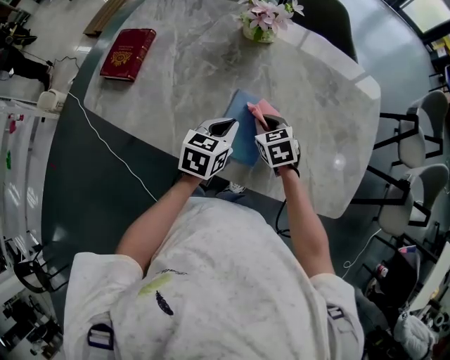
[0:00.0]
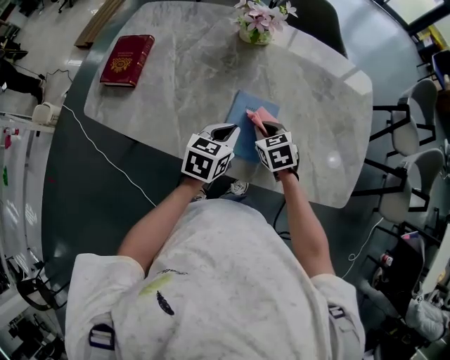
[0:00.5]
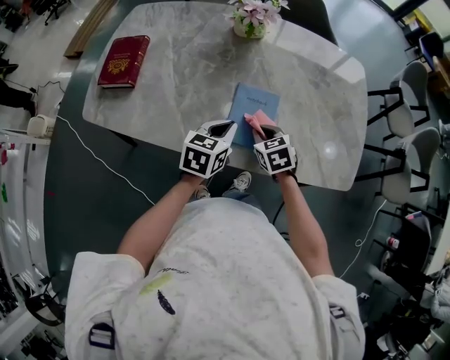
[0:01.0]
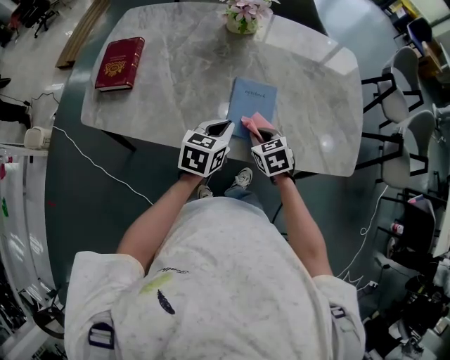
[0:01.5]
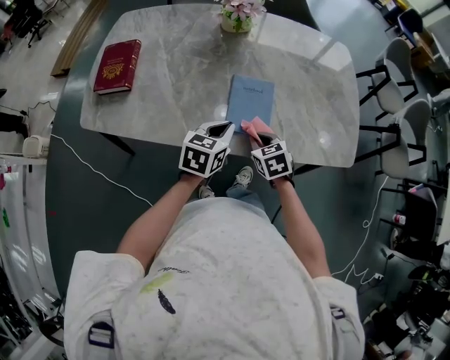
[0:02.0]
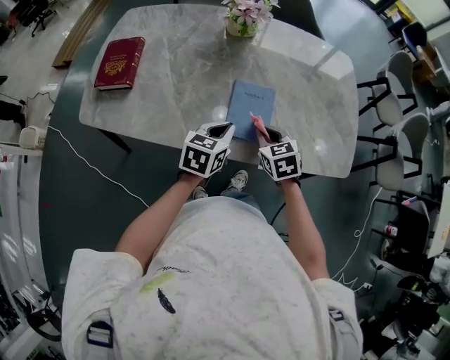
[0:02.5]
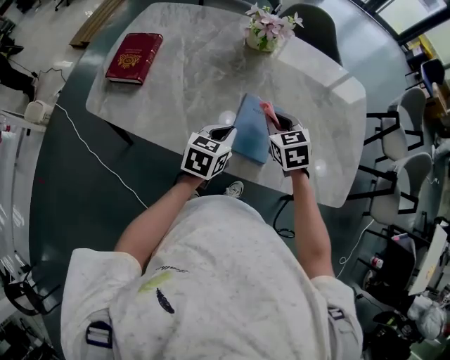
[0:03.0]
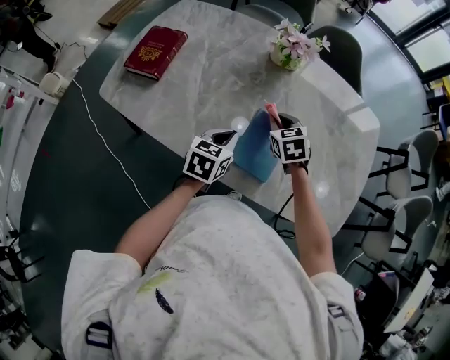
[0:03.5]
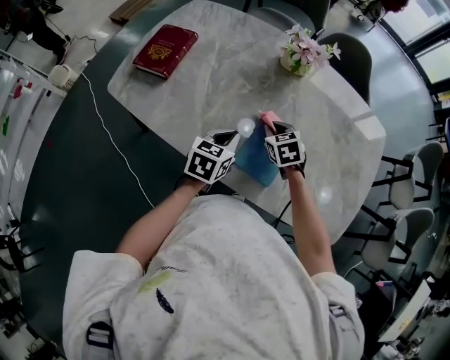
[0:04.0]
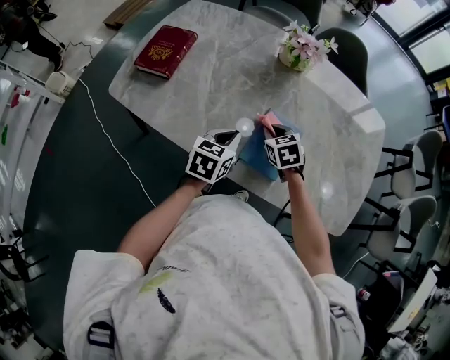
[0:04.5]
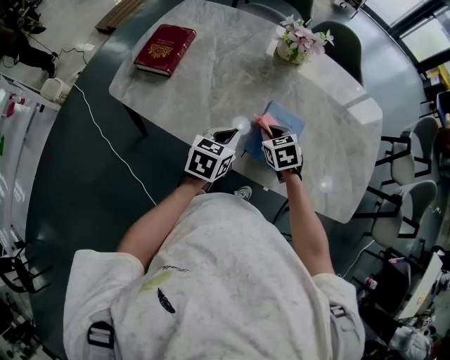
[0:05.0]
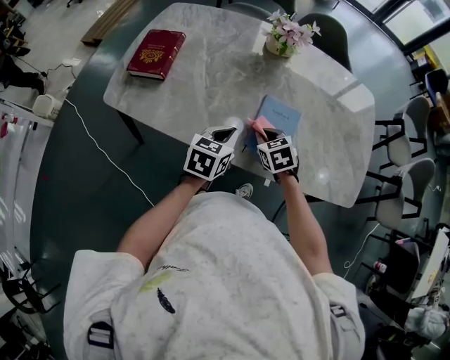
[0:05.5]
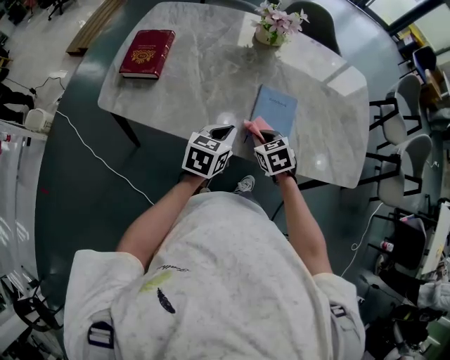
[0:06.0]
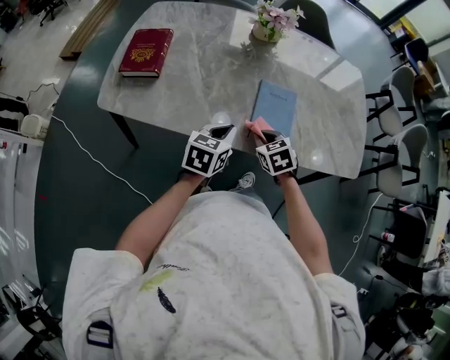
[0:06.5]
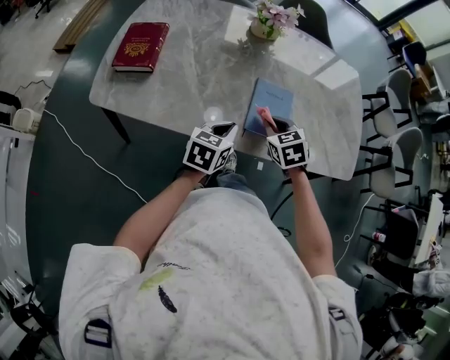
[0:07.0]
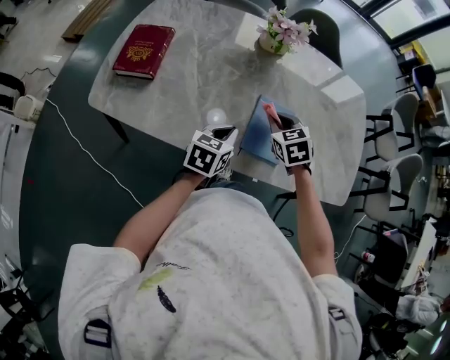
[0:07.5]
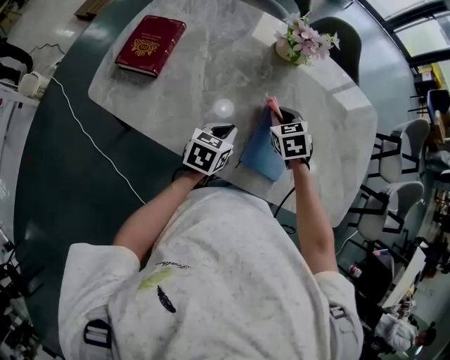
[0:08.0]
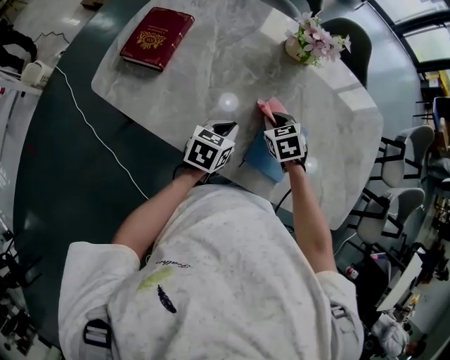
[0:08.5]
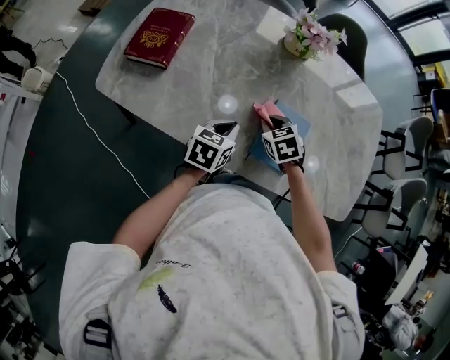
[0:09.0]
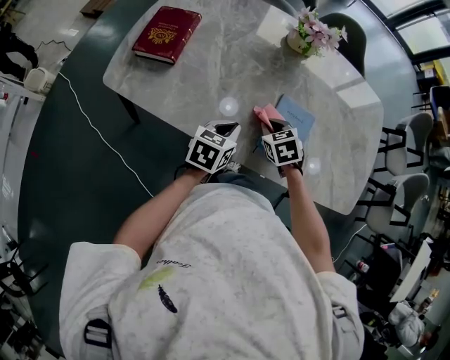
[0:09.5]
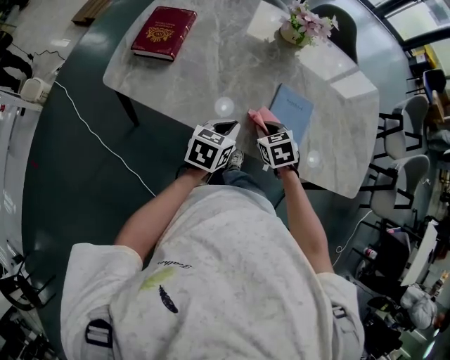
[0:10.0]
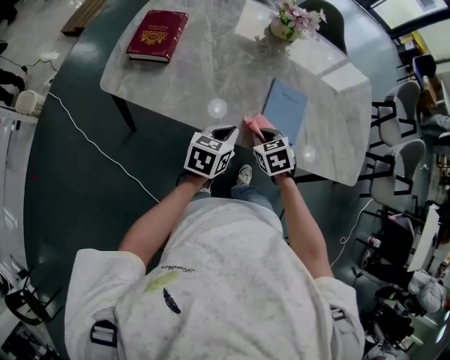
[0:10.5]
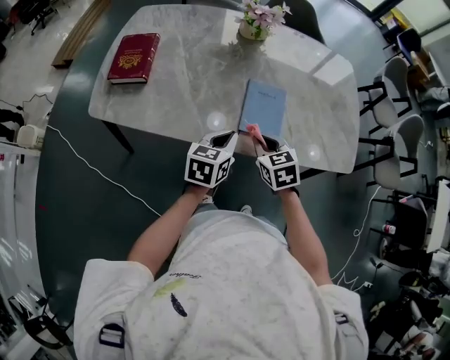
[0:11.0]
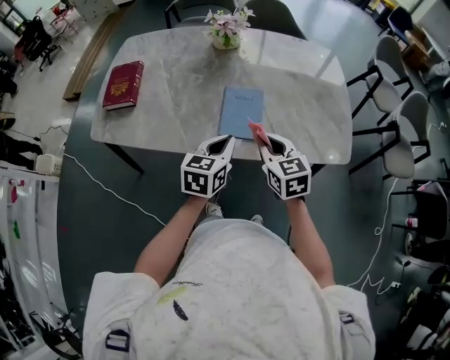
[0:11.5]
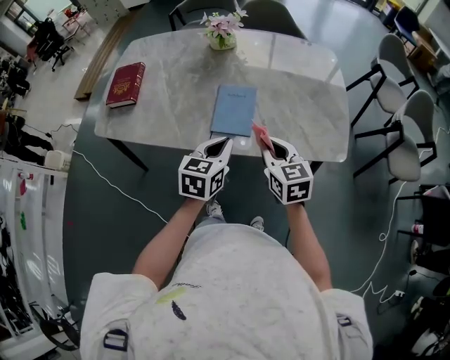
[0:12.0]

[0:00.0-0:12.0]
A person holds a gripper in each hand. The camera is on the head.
0:00.0 to 0:02.0: The right gripper goes some 15 cm backward. The left gripper is displaced backward by some 10 cm.
0:02.0 to 0:04.0: The right gripper travels forward by approximately 20 cm, and rotates about 20 degrees, while the left gripper is displaced forward by approximately 10 cm, and changes its angle by about 20 degrees.
0:04.0 to 0:06.0: The left gripper travels backward by some 10 cm. Meanwhile the right gripper goes approximately 15 cm backward.
0:06.0 to 0:08.0: The left gripper moves forward and downward, approximately 10 cm, while the right gripper heads forward, covering about 20 cm.
0:08.0 to 0:10.0: The right gripper heads backward, covering some 15 cm, while the left gripper shifts approximately 10 cm backward.
0:10.0 to 0:12.0: The left gripper travels to the right and upward by about 20 cm, while the right gripper goes some 25 cm to the right, upward and backward, and points its fingers approximately 30 degrees further upward.

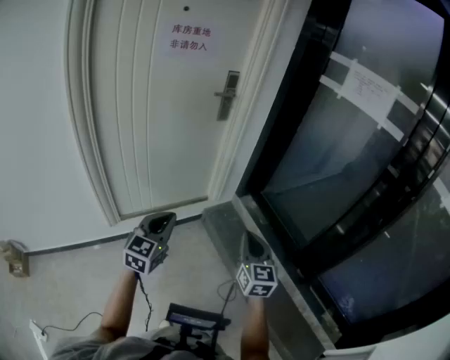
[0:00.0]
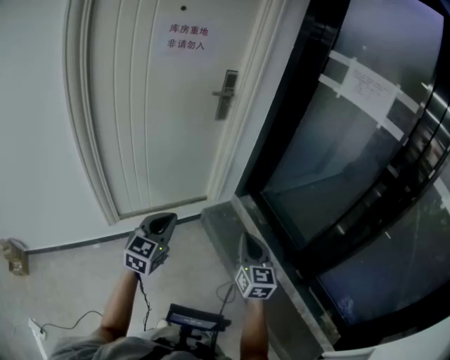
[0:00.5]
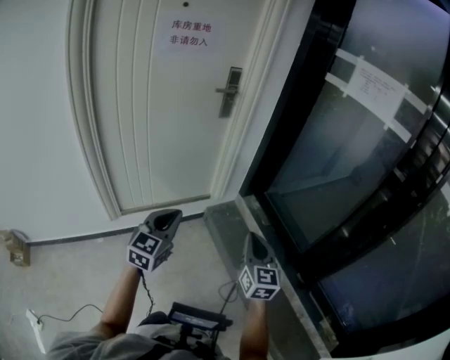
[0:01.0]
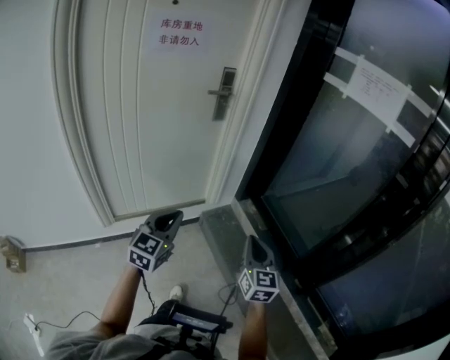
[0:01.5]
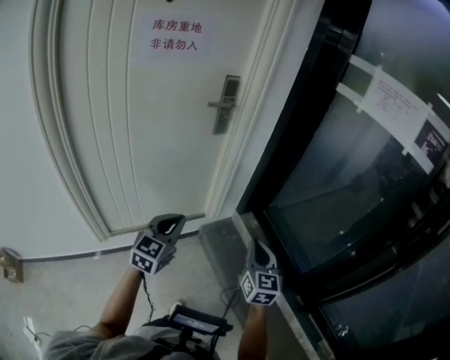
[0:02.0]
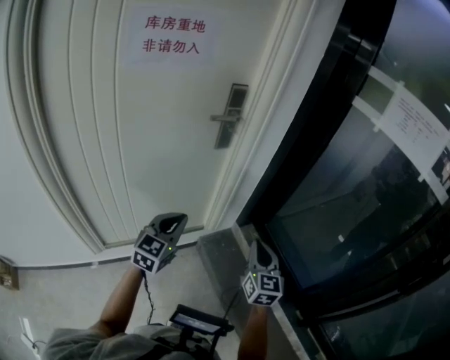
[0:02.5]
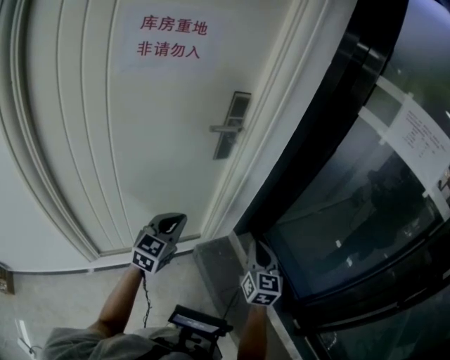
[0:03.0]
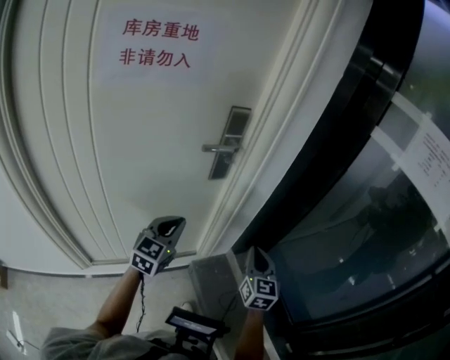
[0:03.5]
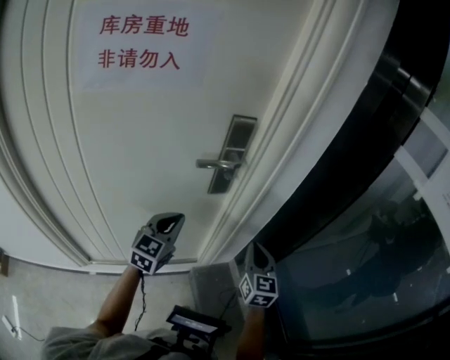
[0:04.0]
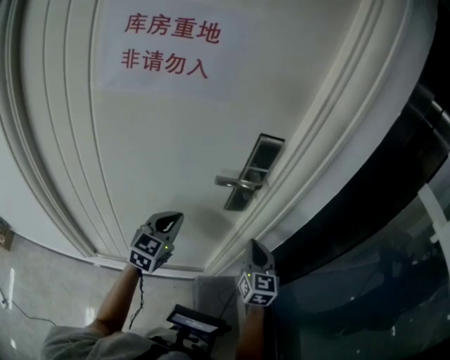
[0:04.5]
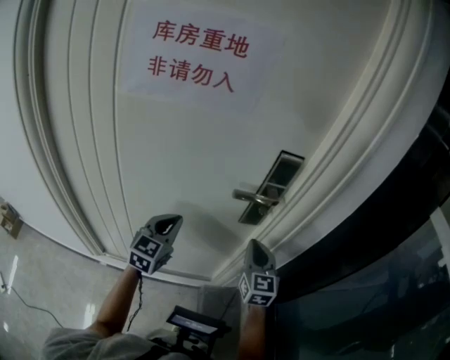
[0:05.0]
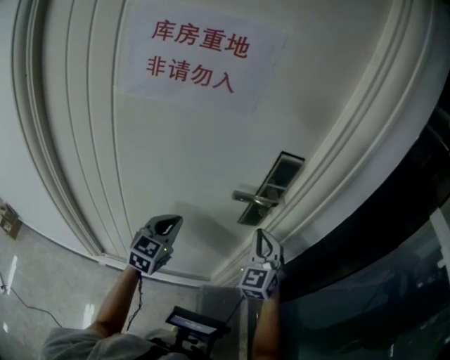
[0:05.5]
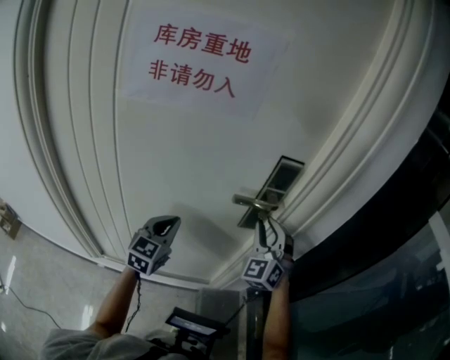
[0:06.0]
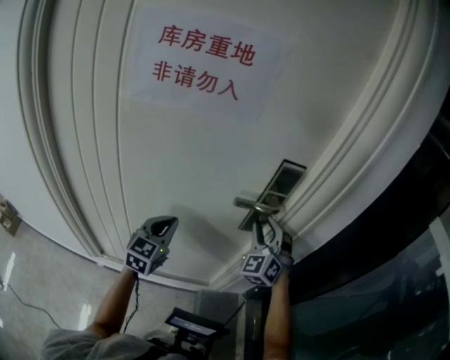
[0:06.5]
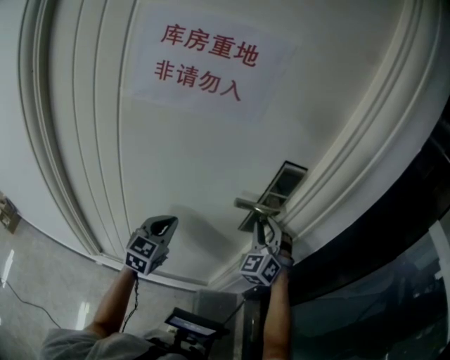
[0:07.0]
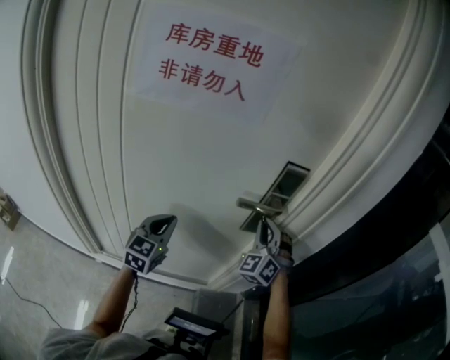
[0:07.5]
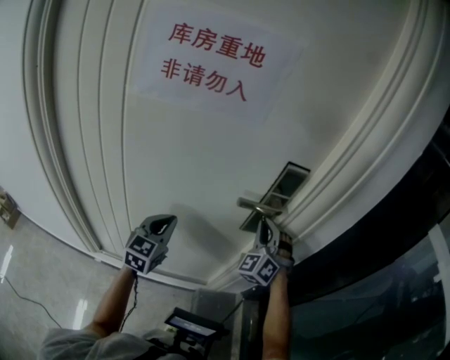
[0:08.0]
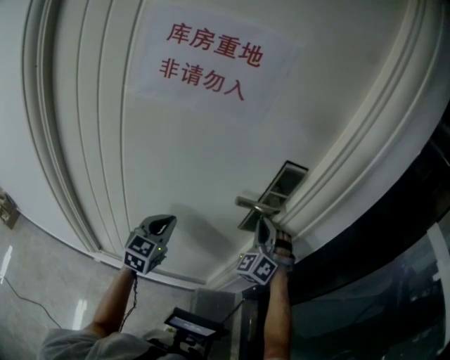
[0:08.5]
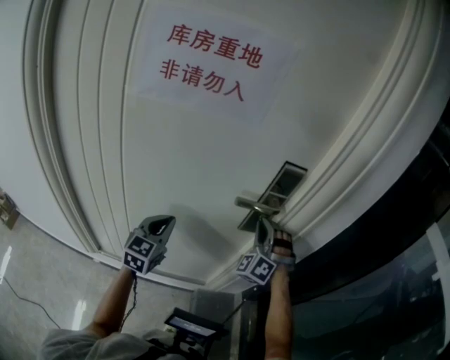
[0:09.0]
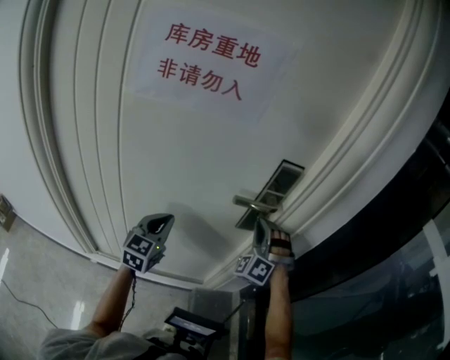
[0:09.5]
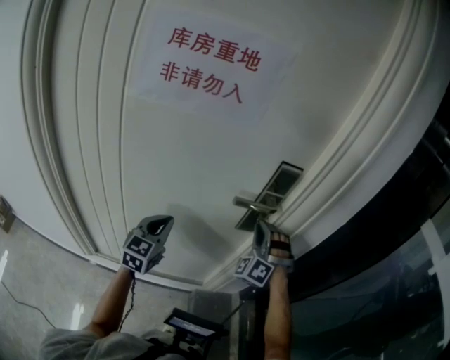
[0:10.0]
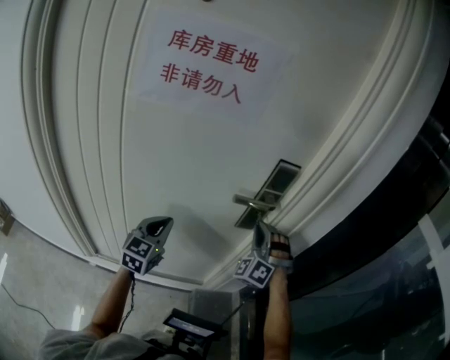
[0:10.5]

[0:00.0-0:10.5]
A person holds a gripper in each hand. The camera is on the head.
0:00.0 to 0:02.0: Both grippers travel together forward, roughly 20 cm.
0:02.0 to 0:04.0: The grippers both shift forward by approximately 40 cm.
0:04.0 to 0:06.5: The left gripper shifts roughly 10 cm to the left, while the right gripper shifts roughly 20 cm forward, to the left and upward, rotates around the line of its fingers by about 50 degrees, counterclockwise from behind, and opens.
0:06.5 to 0:08.5: The right gripper closes up.
0:08.5 to 0:10.5: The grippers move only a little.

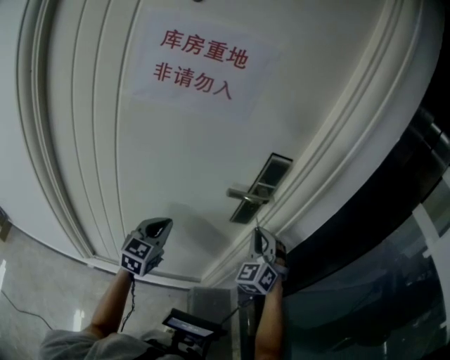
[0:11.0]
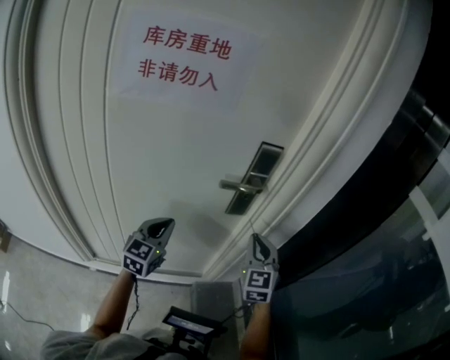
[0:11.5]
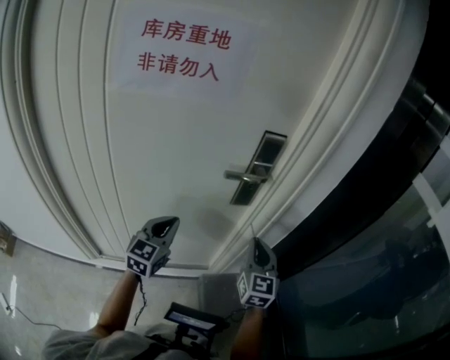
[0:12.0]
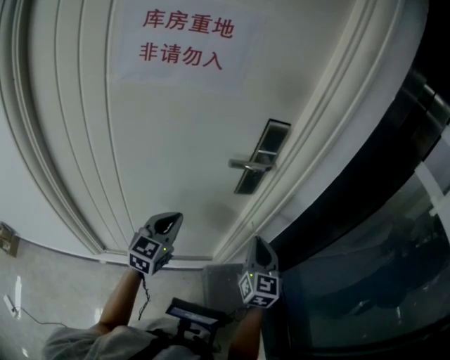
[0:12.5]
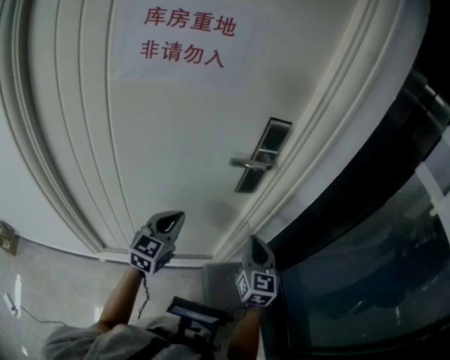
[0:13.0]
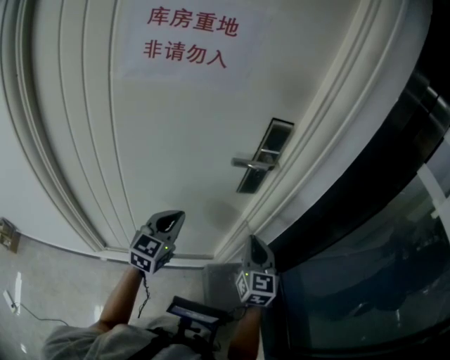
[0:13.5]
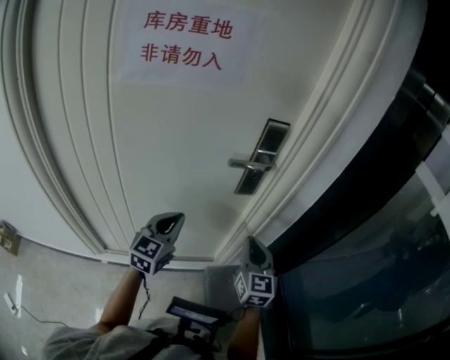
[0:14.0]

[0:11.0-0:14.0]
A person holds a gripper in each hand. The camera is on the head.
0:11.0 to 0:12.5: The right gripper shifts roughly 10 cm backward and downward, and rotates around the line of its fingers by about 60 degrees, clockwise from behind. The left gripper changes place by about 5 cm.
0:12.5 to 0:14.0: There are only small adjustments of the grippers.

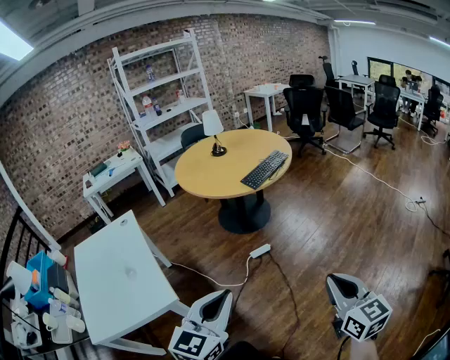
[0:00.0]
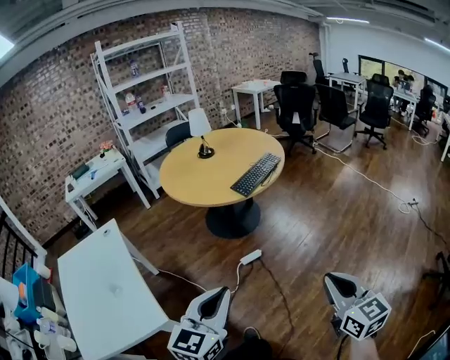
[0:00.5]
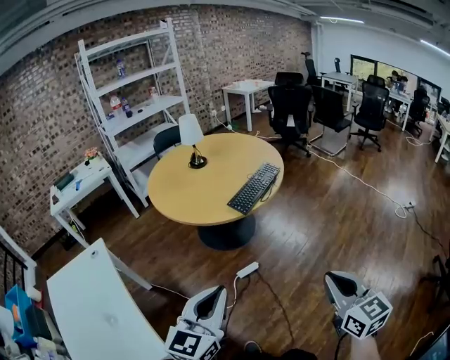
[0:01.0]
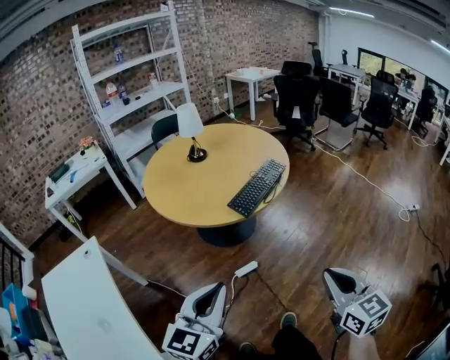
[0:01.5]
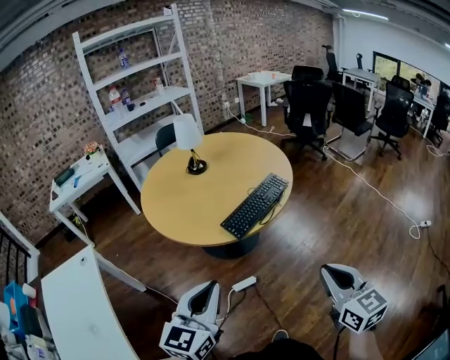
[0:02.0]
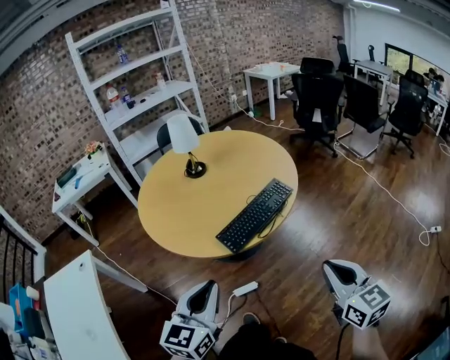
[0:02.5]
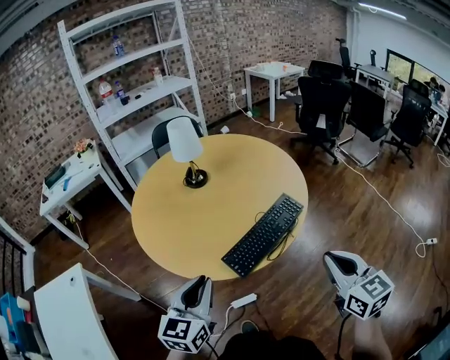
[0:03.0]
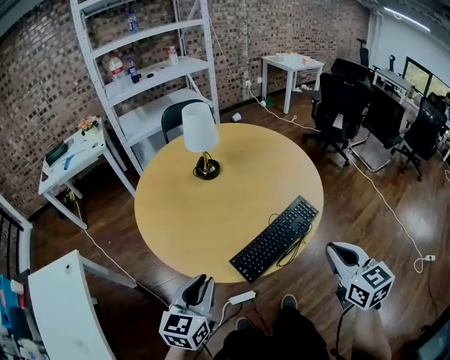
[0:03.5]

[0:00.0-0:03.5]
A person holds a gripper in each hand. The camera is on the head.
0:00.0 to 0:02.0: The pair of grippers is taken forward, about 50 cm.
0:02.0 to 0:03.5: The grippers both shift forward by some 35 cm.
